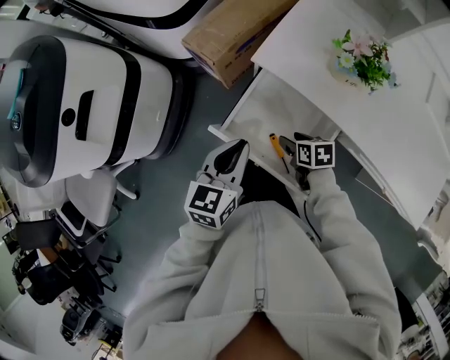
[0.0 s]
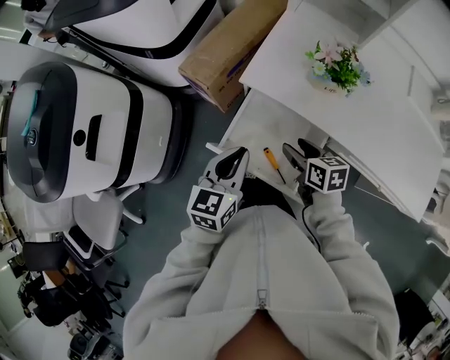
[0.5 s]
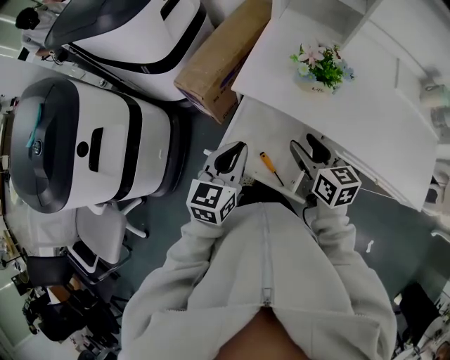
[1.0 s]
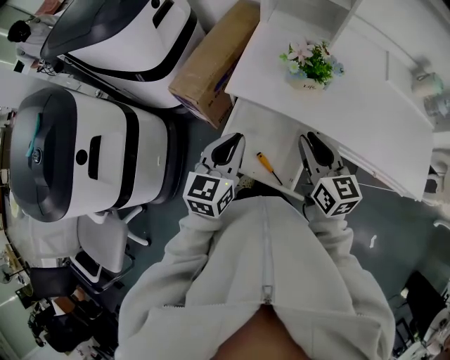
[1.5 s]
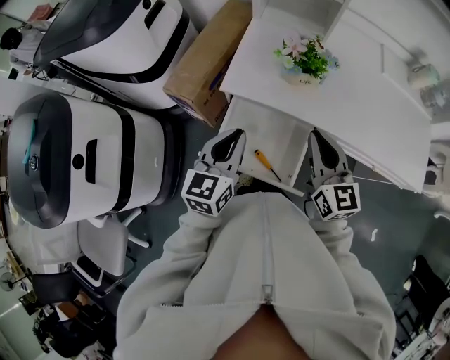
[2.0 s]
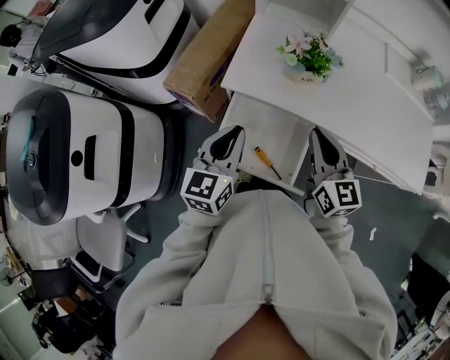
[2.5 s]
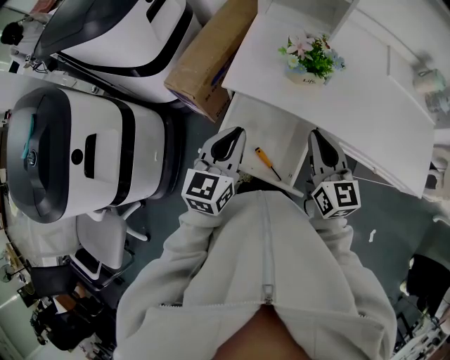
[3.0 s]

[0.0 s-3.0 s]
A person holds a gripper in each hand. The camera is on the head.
0.0 to 1.5 s: The left gripper travels upward by roughly 5 cm. The right gripper shifts approximately 25 cm upward, tilts its fingers roughly 40 degrees upward, and closes.
1.5 to 3.0 s: The grippers make only small movements.

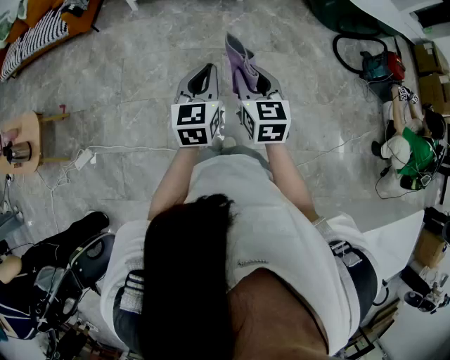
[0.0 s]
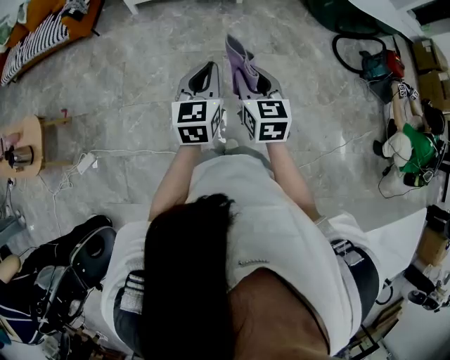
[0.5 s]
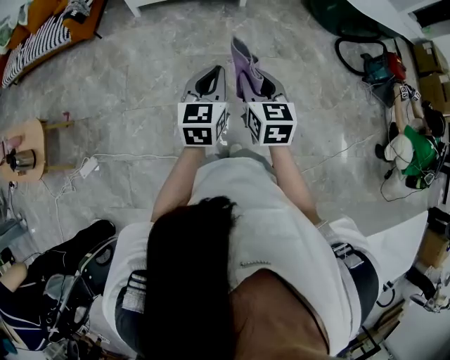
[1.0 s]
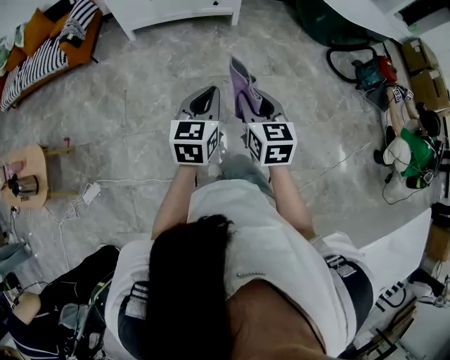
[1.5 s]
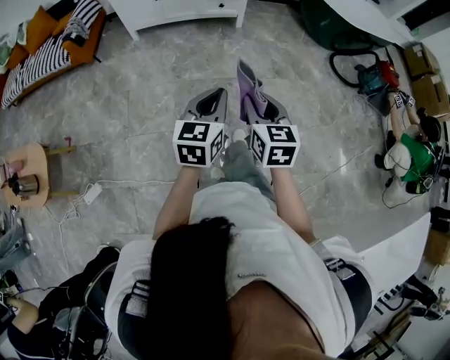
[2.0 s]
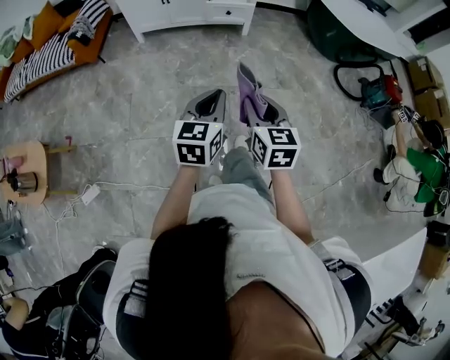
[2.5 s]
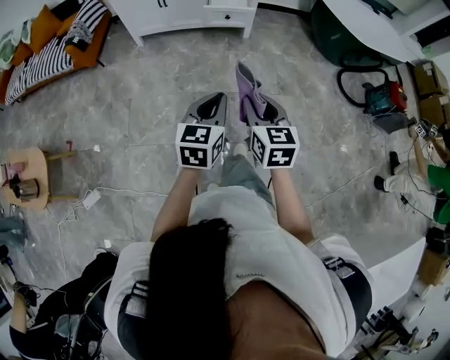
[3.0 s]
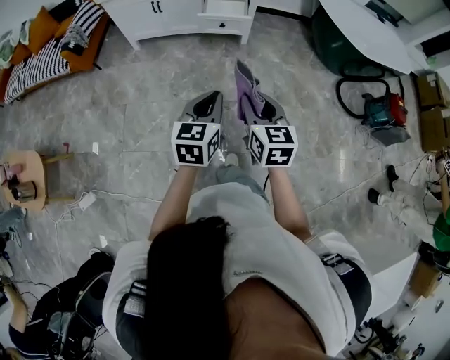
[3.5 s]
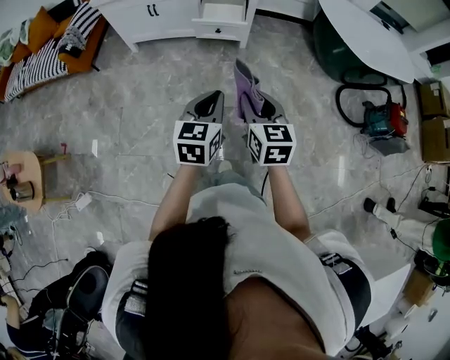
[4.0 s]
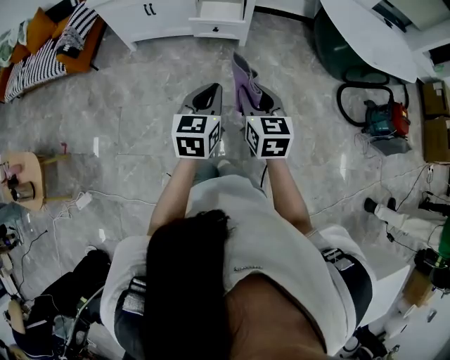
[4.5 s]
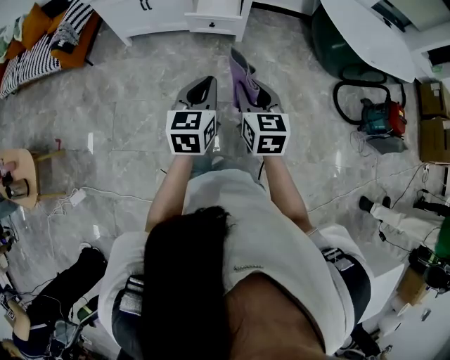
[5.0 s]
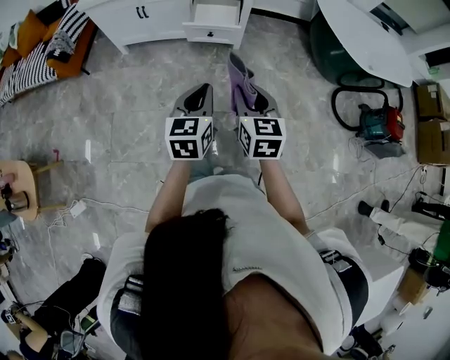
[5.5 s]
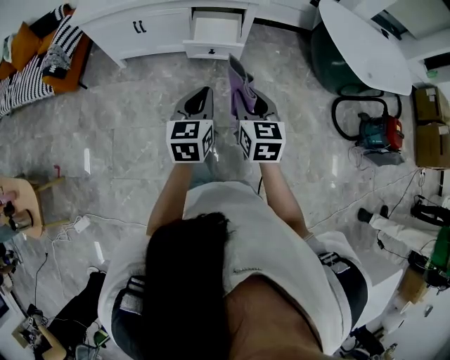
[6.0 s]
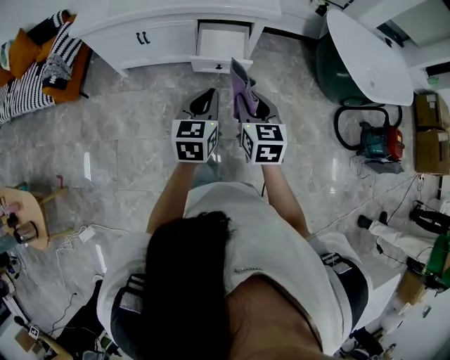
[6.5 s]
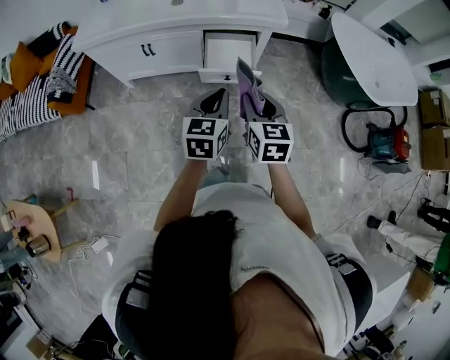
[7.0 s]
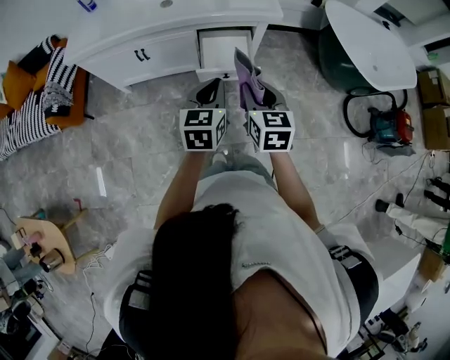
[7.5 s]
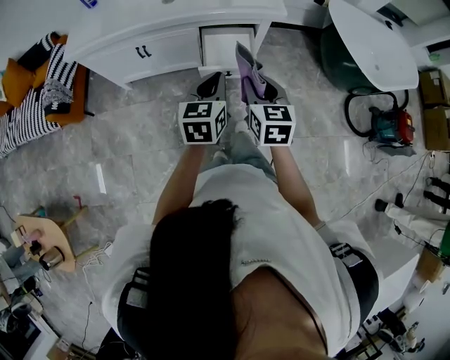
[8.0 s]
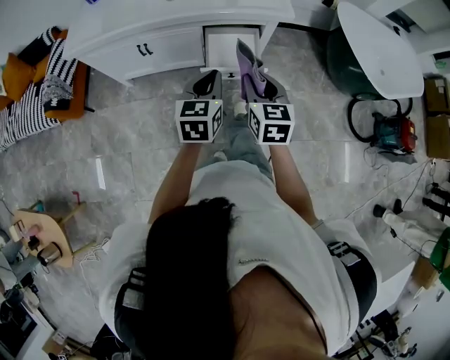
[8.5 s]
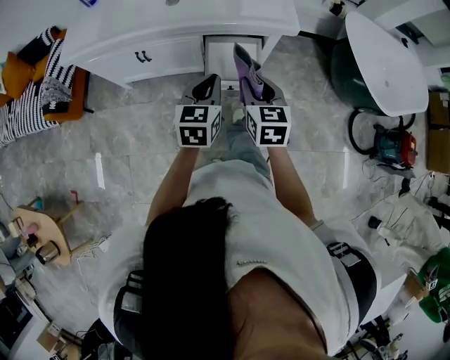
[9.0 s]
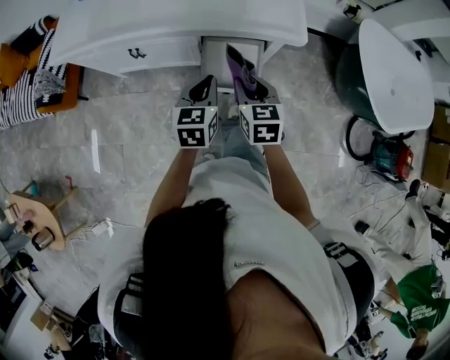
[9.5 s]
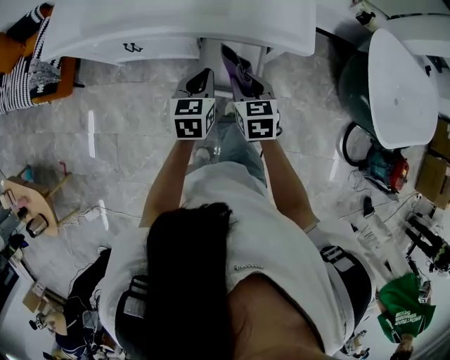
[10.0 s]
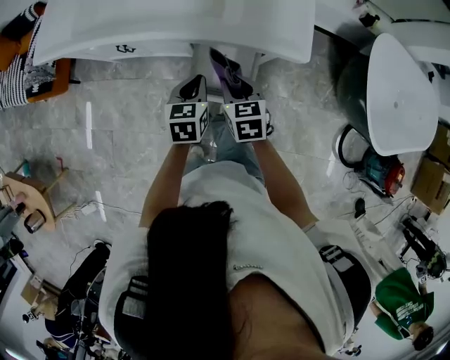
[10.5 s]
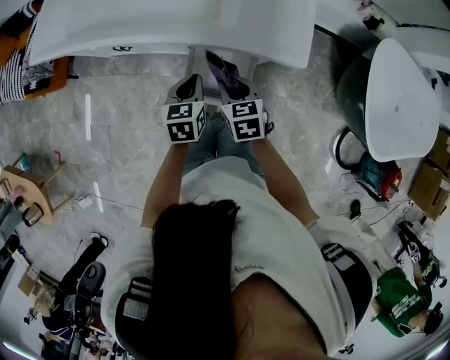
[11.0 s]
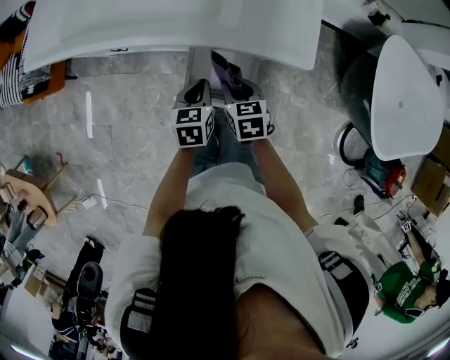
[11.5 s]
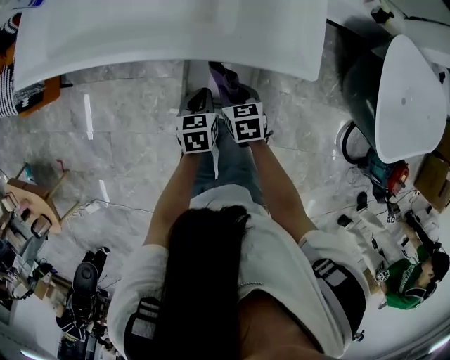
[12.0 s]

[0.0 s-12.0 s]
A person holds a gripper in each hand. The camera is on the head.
0.0 to 2.0 s: The left gripper ends up roughly 5 cm from where it was; the right gripper moves approximately 5 cm.
2.0 to 4.0 s: Both grippers travel together forward, some 30 cm.
4.0 to 6.0 s: The two grippers go about 20 cm forward.
6.0 to 8.0 s: The left gripper shifts some 20 cm forward. Meanwhile the right gripper is displaced forward and to the left by approximately 20 cm.
8.0 to 10.0 s: The grippers both shift forward and downward by approximately 25 cm. The right gripper rotates about 20 degrees.
10.0 to 12.0 s: The right gripper shifts some 15 cm downward and forward; the left gripper shifts roughly 15 cm downward.

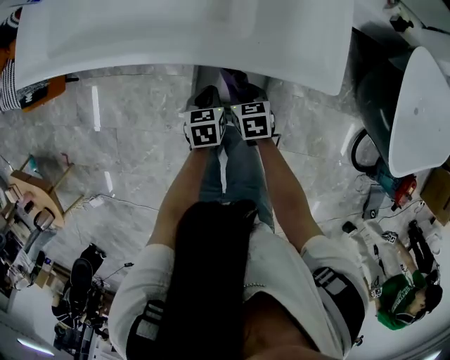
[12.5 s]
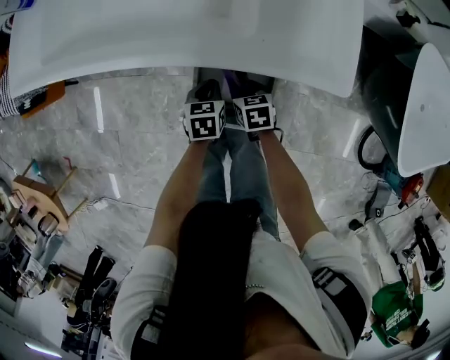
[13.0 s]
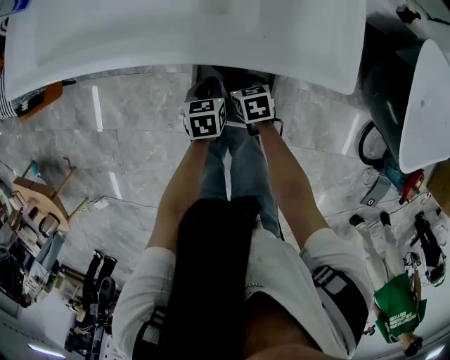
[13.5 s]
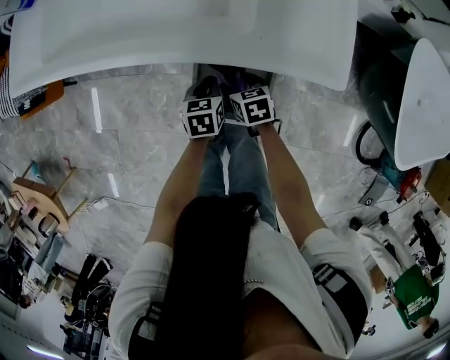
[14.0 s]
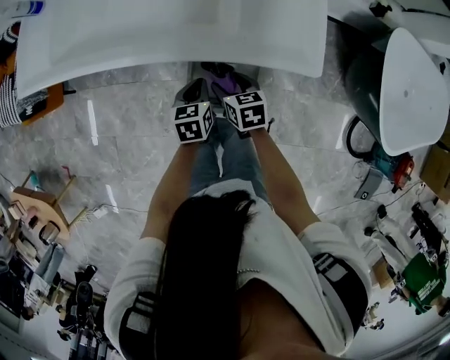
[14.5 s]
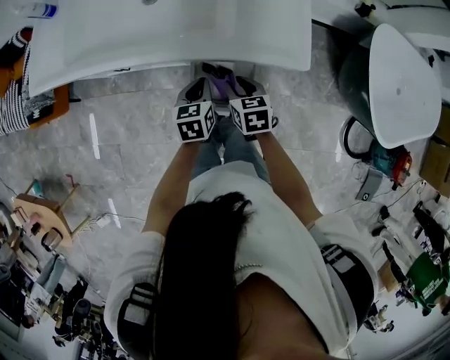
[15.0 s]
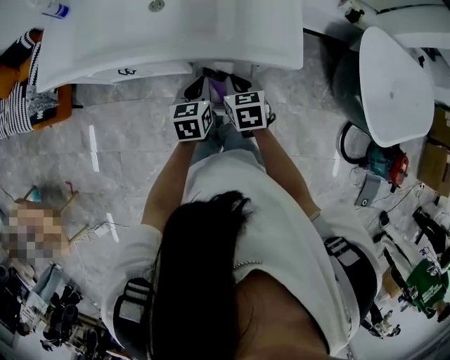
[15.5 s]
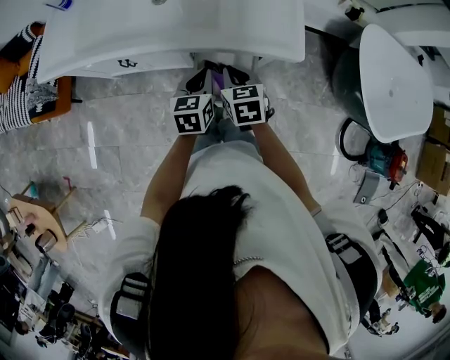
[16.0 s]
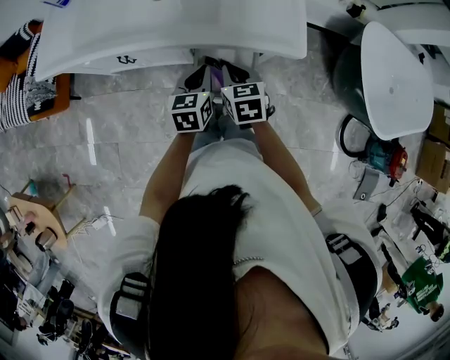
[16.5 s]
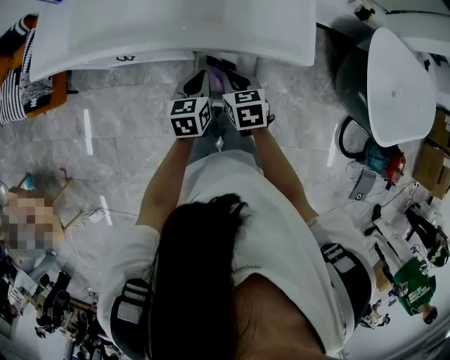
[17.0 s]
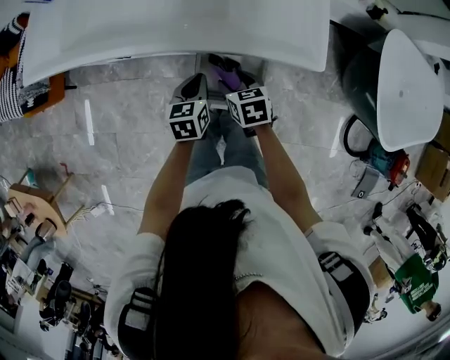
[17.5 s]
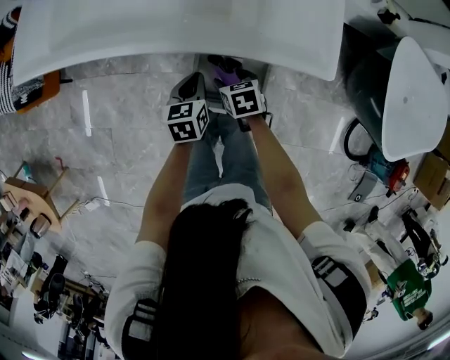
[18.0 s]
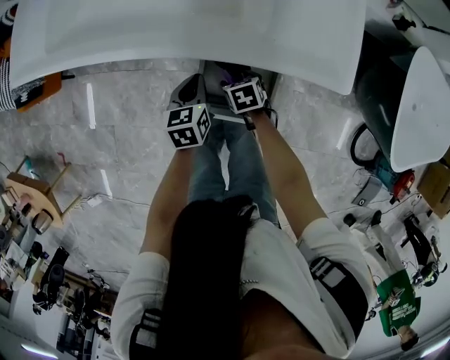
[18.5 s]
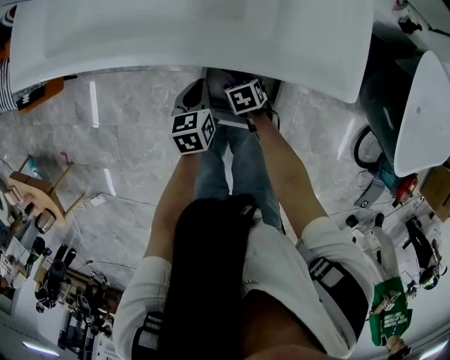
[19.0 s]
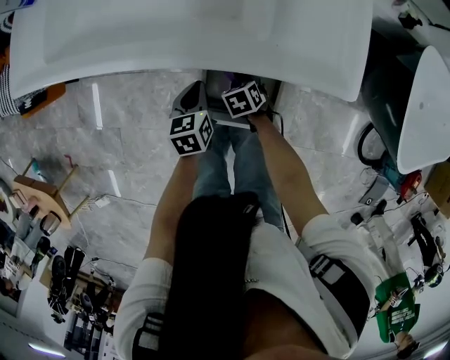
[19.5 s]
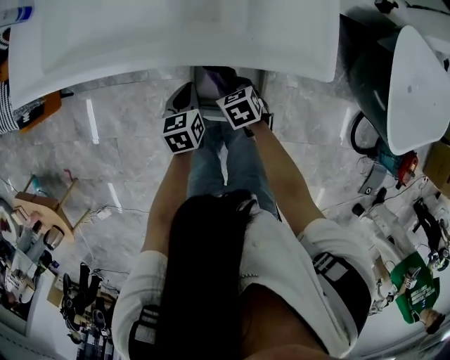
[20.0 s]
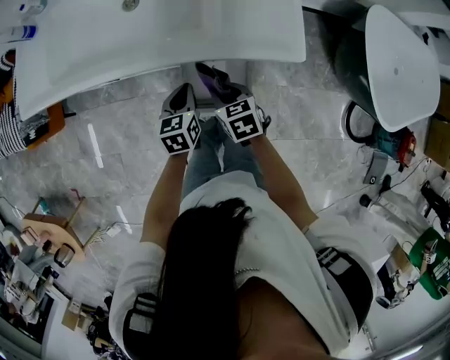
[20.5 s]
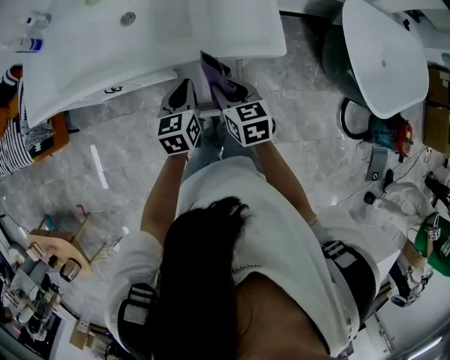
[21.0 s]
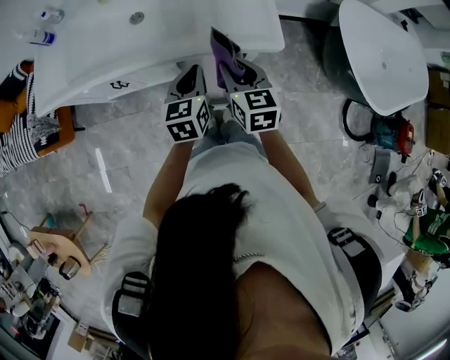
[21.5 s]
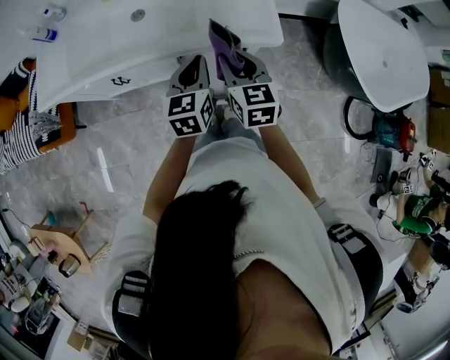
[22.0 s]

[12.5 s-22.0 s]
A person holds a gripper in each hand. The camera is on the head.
12.5 to 14.5 s: Both grippers travel together upward, roughly 5 cm. The right gripper opens up.
14.5 to 16.5 s: The grippers both shift upward by about 15 cm. The right gripper closes.
16.5 to 18.0 s: The two grippers go roughly 15 cm downward. The right gripper changes its angle by approximately 20 degrees, and opens its fingers.
18.0 to 20.0 s: The right gripper reaches roughly 10 cm downward, then returns, and closes.
20.0 to 22.0 s: The two grippers go about 30 cm upward. The right gripper tilts its fingers about 40 degrees upward, while the left gripper swivels roughly 30 degrees.

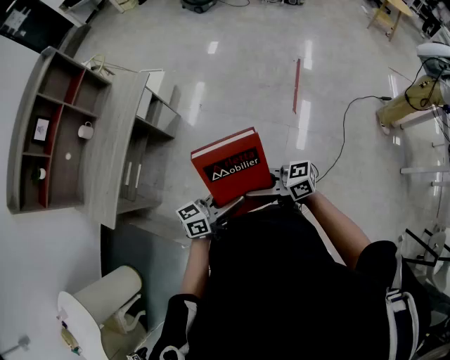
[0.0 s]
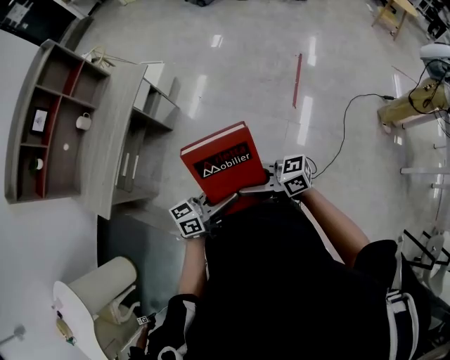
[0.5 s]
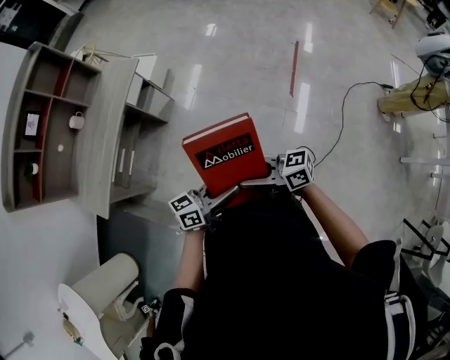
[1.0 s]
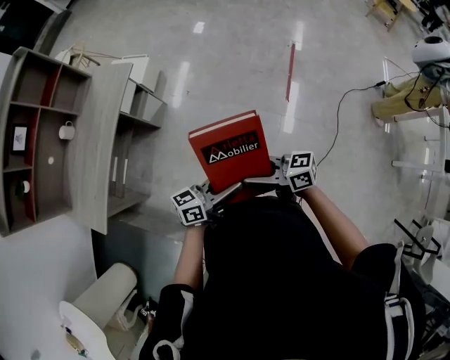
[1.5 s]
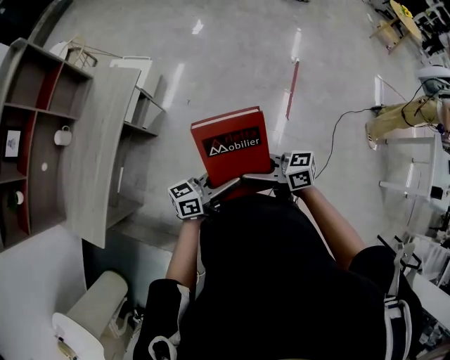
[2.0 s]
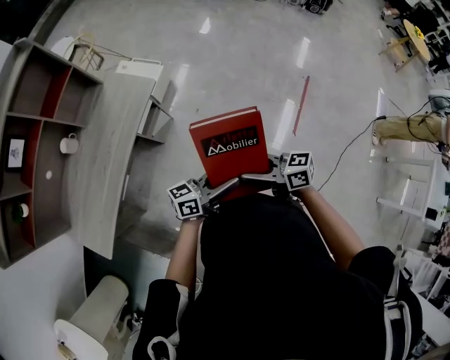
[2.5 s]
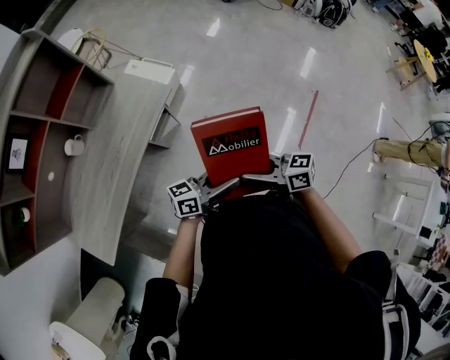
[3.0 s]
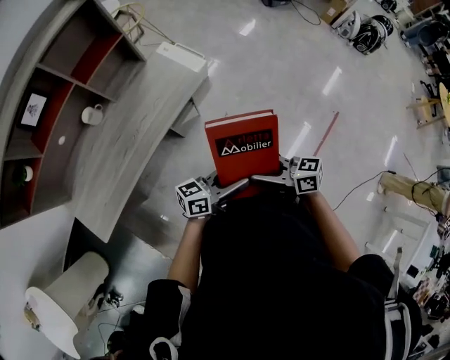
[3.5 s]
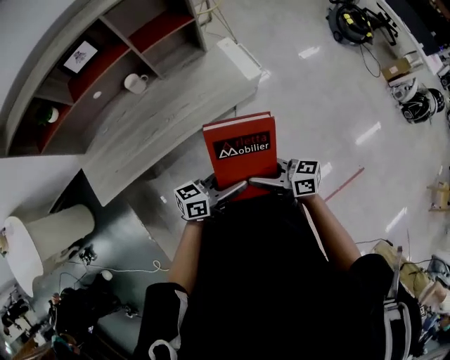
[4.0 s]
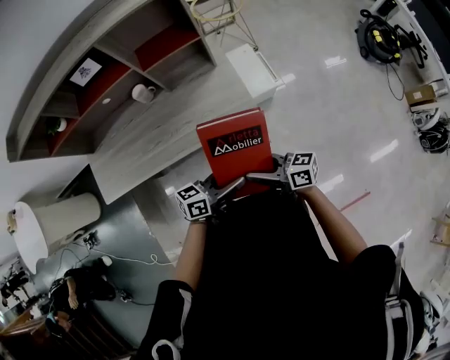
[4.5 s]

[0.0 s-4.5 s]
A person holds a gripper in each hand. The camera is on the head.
0.0 to 2.0 s: The left gripper shifts by roughly 25 cm, while the right gripper changes place by roughly 25 cm.
2.0 to 4.5 s: The pair of grippers is taken about 50 cm. The right gripper swivels roughly 50 degrees. Meanwhile the left gripper changes its angle by about 50 degrees.
